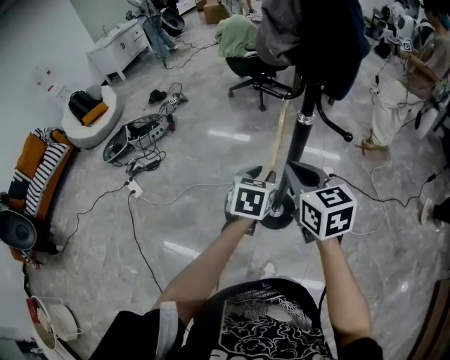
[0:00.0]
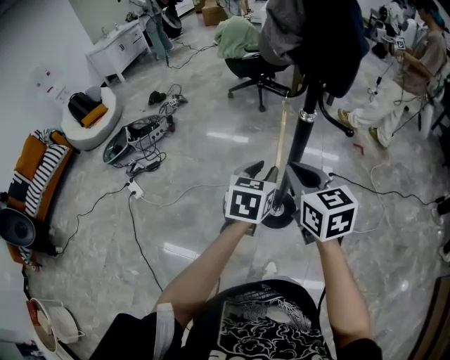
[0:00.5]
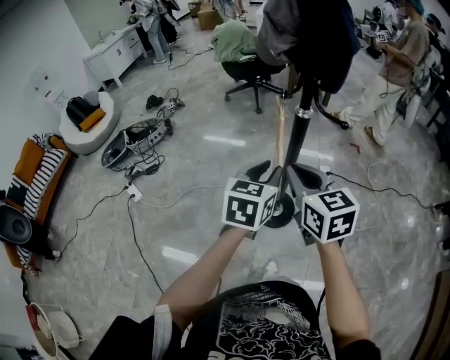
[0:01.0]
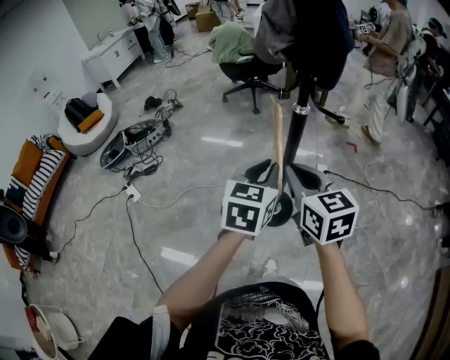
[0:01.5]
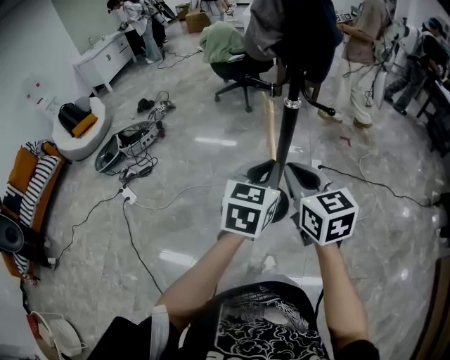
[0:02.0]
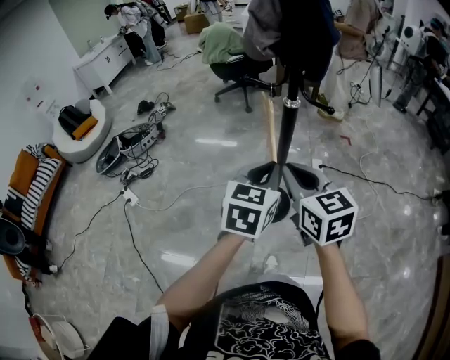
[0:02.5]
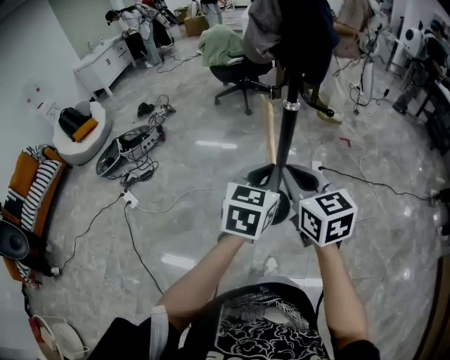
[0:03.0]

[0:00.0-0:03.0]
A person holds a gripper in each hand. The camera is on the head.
0:00.0 to 0:01.5: The left gripper moves upward and backward, some 15 cm; the right gripper goes roughly 5 cm backward.
0:01.5 to 0:03.0: The grippers stay close to where they were, moving slightly.

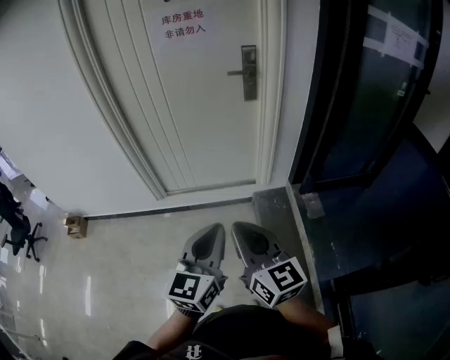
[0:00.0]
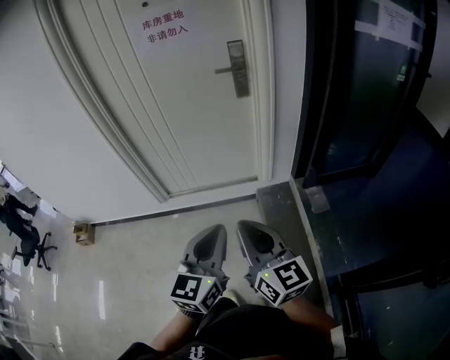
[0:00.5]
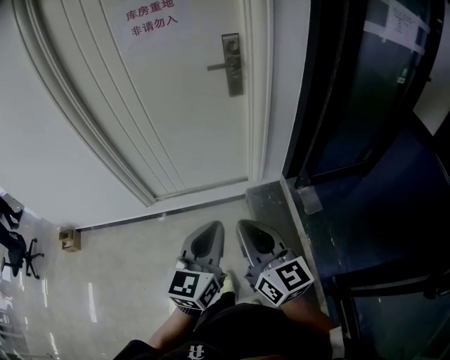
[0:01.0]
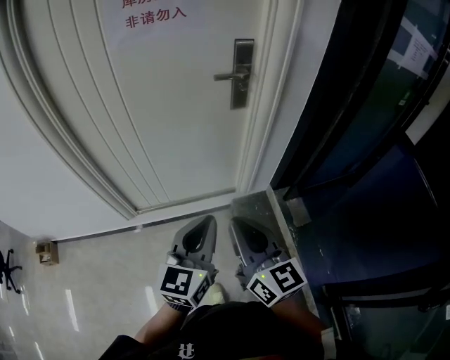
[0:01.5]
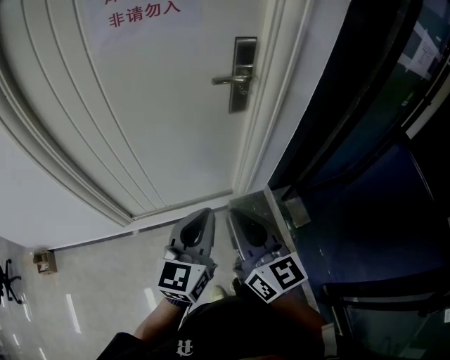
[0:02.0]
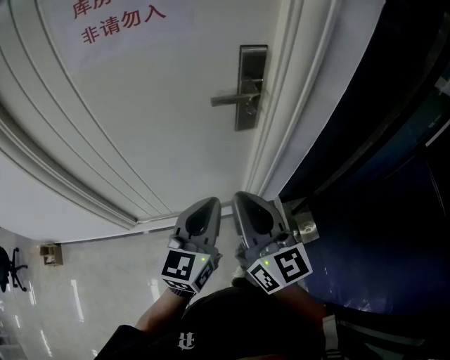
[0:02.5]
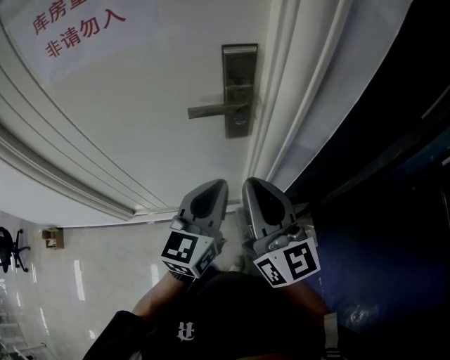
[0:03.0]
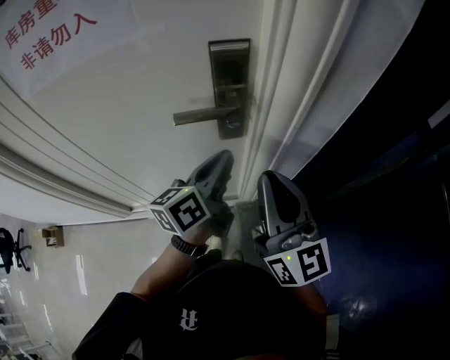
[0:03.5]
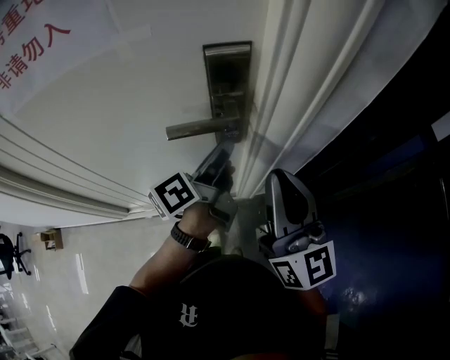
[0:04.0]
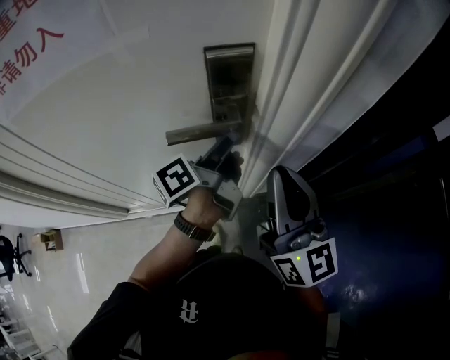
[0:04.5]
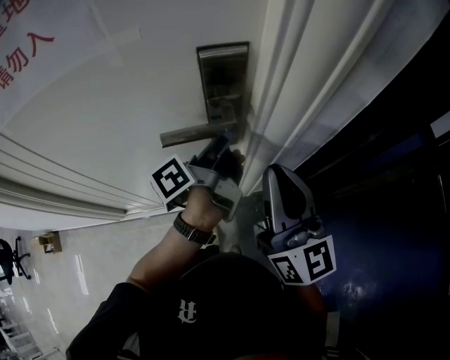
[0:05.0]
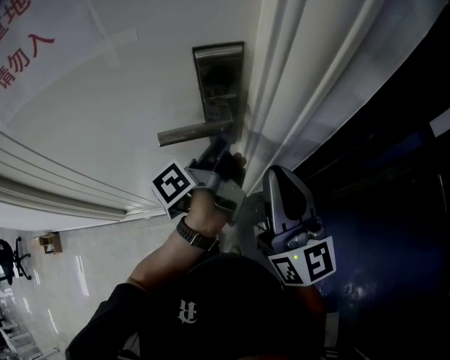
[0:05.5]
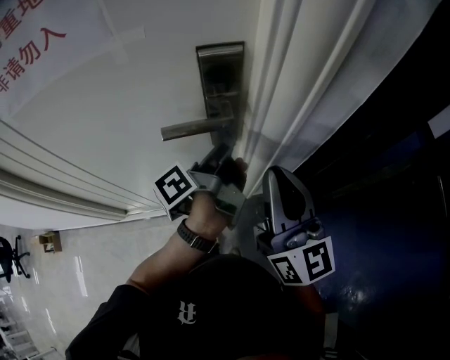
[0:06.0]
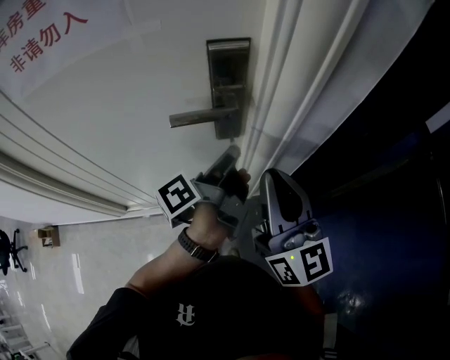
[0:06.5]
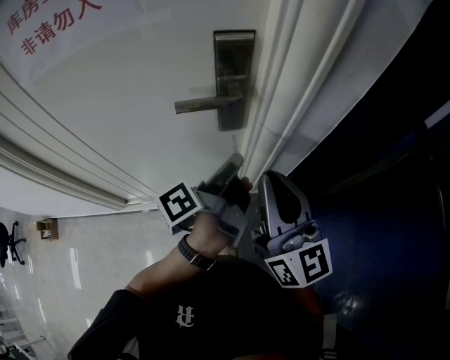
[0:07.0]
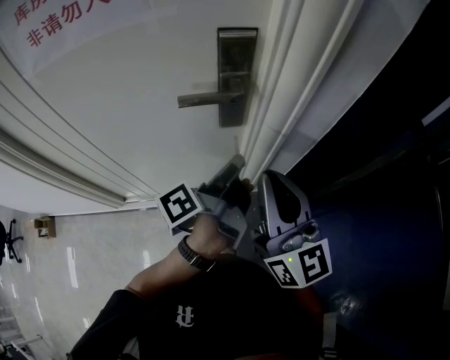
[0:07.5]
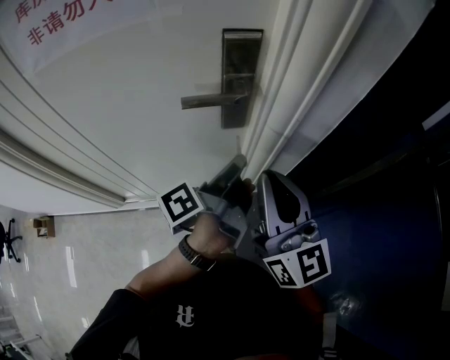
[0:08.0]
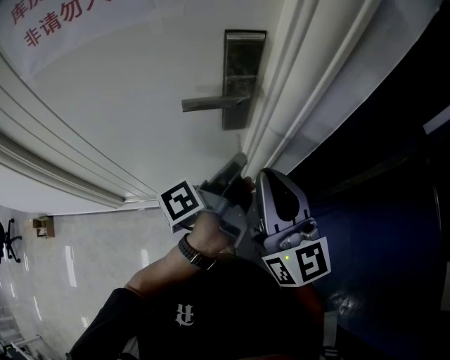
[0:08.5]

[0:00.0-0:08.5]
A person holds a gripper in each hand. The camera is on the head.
0:00.0 to 0:02.0: Both grippers travel together forward, roughly 35 cm.
0:02.0 to 0:04.0: The right gripper is displaced forward and to the right by some 35 cm. Meanwhile the left gripper heads forward, covering about 40 cm, and twists approximately 60 degrees counterclockwise, seen from behind.
0:04.0 to 0:06.5: The left gripper changes its angle by about 20 degrees.
0:06.5 to 0:08.5: The grippers stay close to where they were, moving slightly.

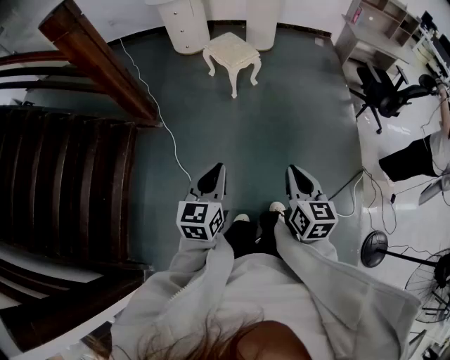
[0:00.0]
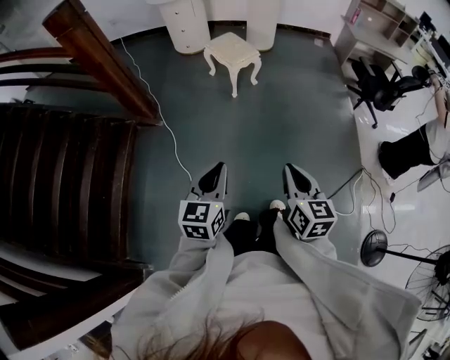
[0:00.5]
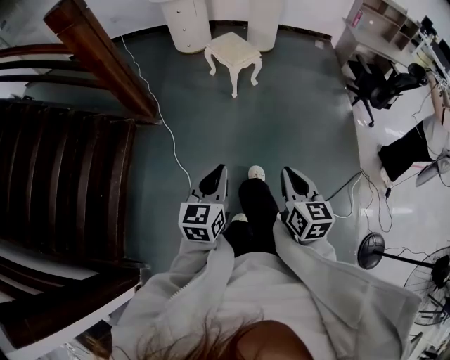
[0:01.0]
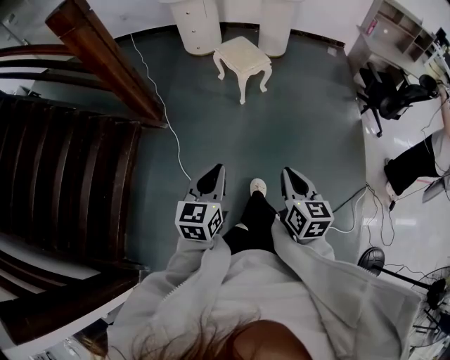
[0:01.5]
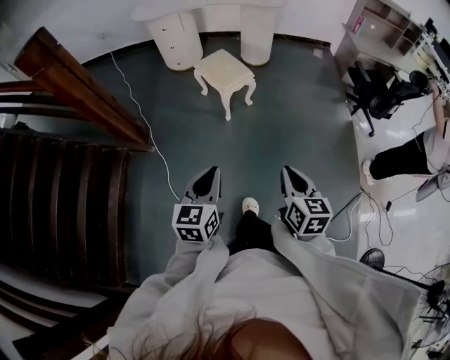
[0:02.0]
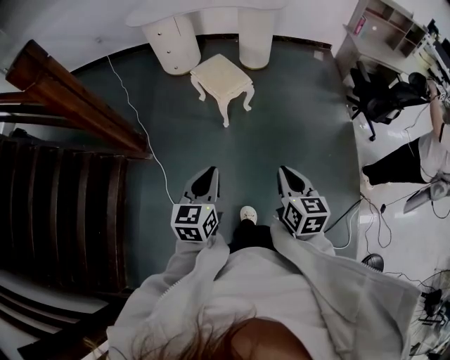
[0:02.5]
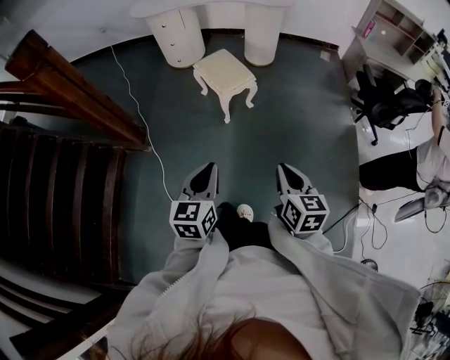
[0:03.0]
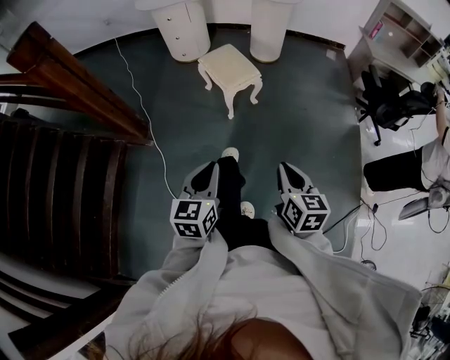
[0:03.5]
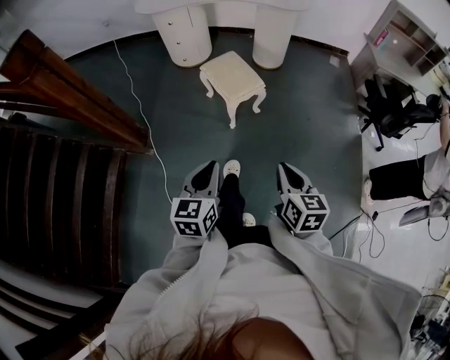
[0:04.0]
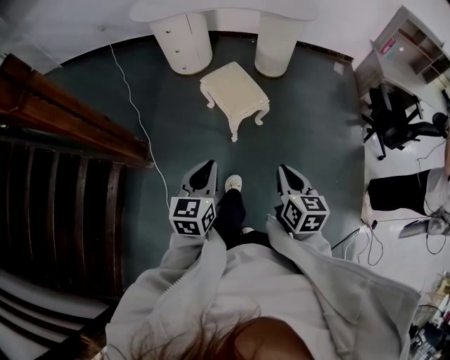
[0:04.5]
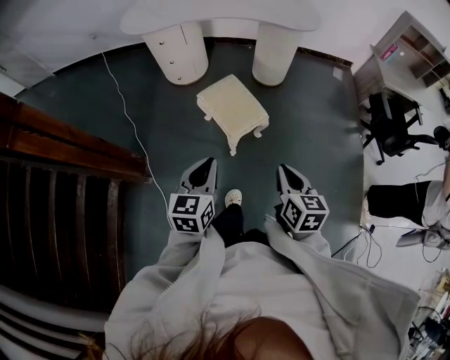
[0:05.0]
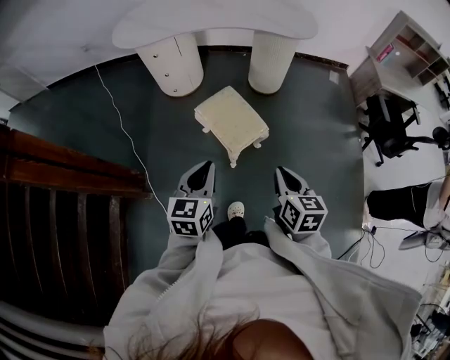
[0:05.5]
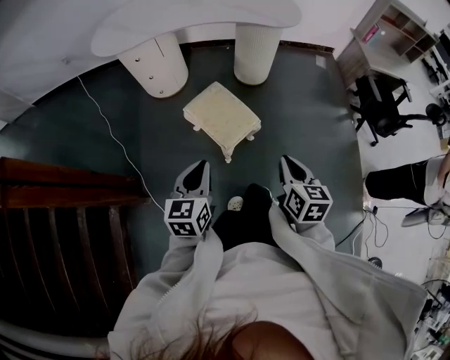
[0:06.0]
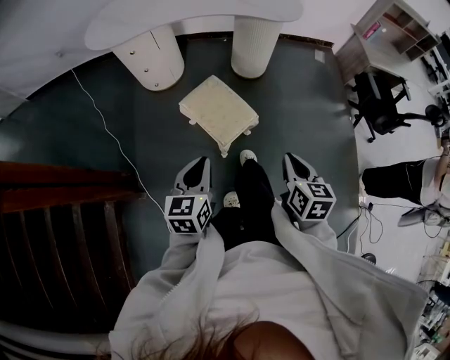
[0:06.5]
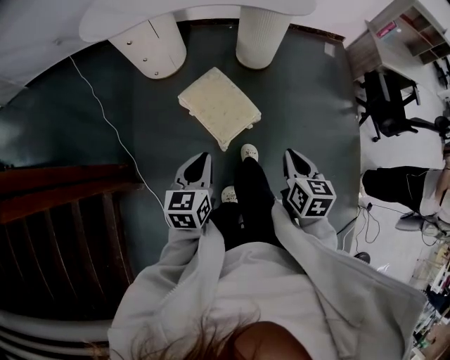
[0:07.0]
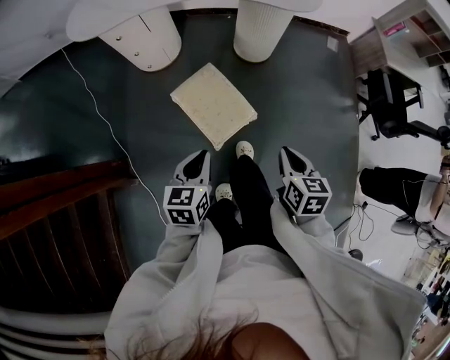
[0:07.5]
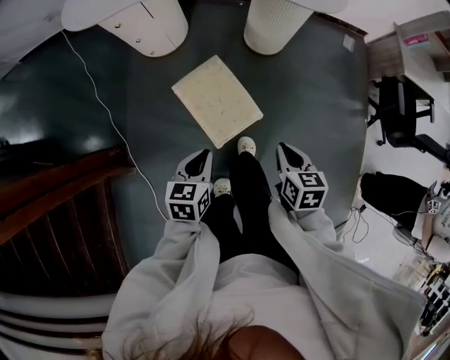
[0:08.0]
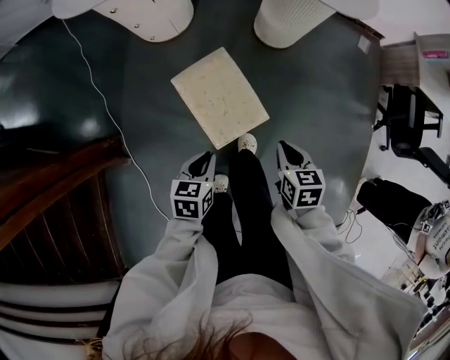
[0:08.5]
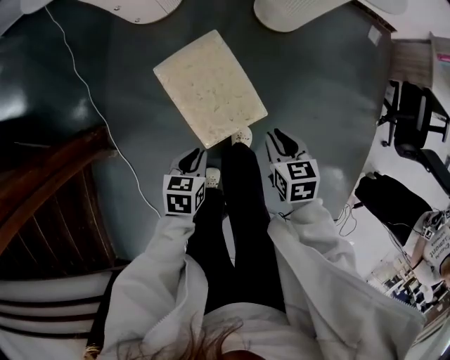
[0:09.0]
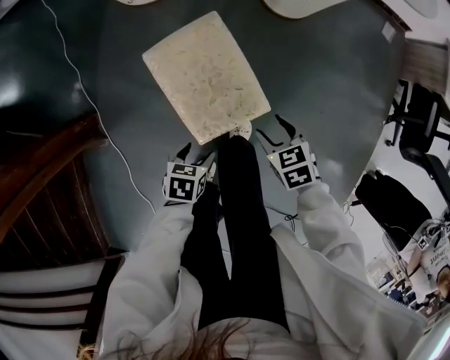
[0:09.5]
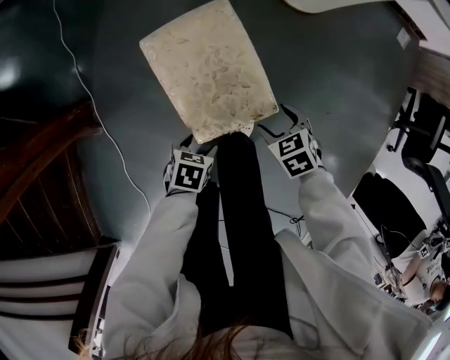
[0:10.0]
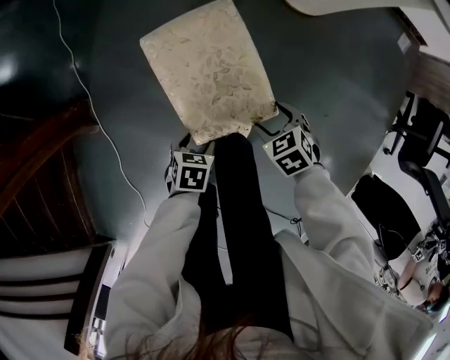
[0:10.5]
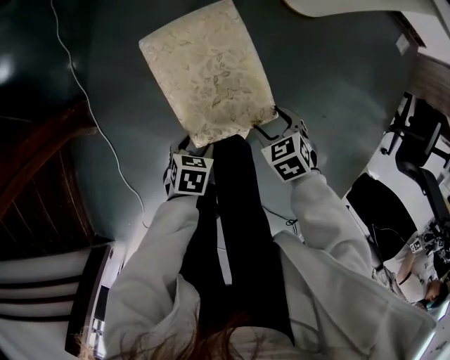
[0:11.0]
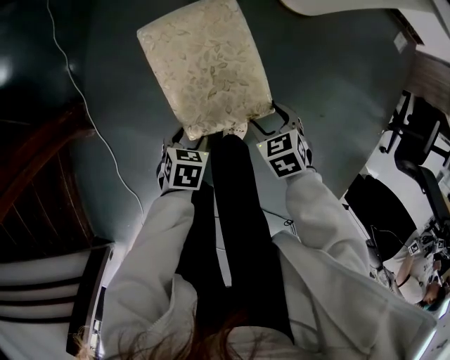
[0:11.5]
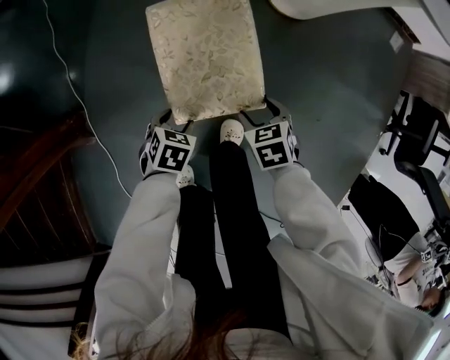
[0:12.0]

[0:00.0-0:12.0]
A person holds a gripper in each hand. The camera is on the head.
0:00.0 to 0:02.0: Both grippers travel together forward, approximately 20 cm.
0:02.0 to 0:04.0: Both grippers move forward, roughly 15 cm.
0:04.0 to 0:06.0: Both grippers travel together forward, some 30 cm.
0:06.0 to 0:08.0: Both grippers travel together forward and downward, about 20 cm. The right gripper rotates roughly 20 degrees. Meanwhile the left gripper swivels roughly 20 degrees.
0:08.0 to 0:10.0: The two grippers go about 35 cm downward. The right gripper turns by roughly 50 degrees, and opens up. The left gripper turns by approximately 40 degrees, and opens.
0:10.0 to 0:12.0: The left gripper shifts by about 10 cm, while the right gripper moves approximately 5 cm.

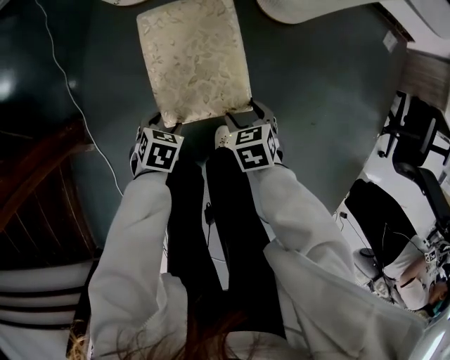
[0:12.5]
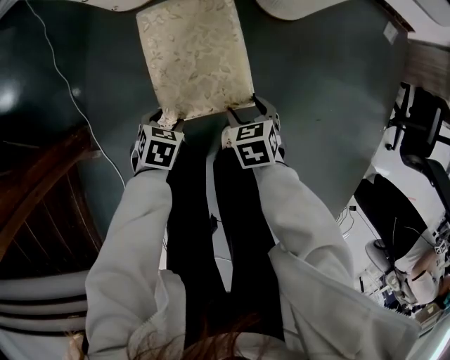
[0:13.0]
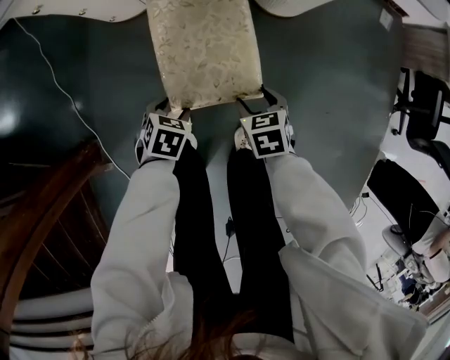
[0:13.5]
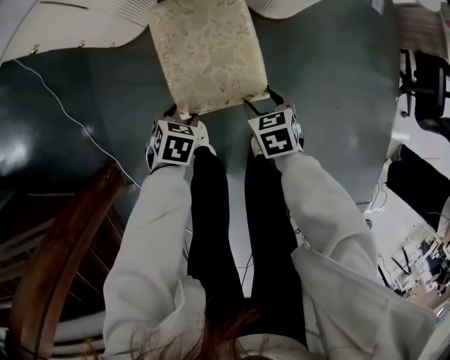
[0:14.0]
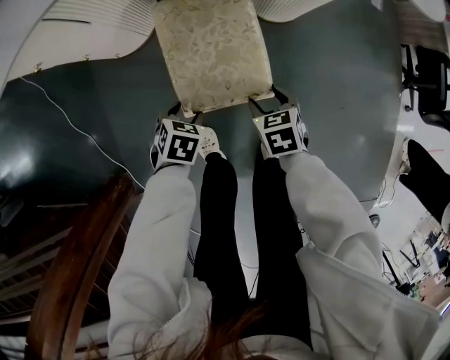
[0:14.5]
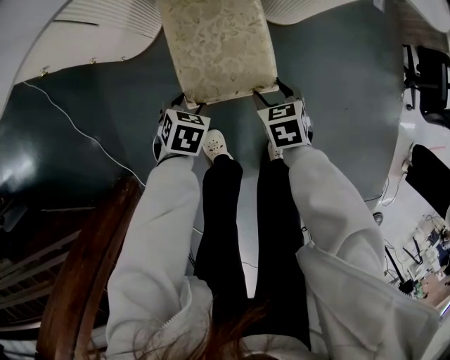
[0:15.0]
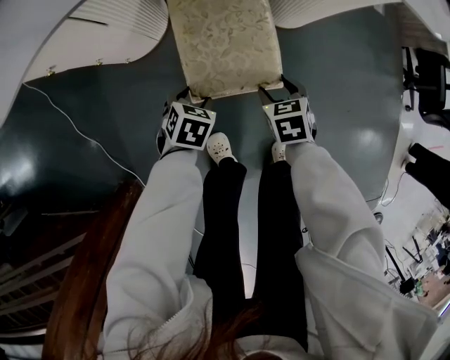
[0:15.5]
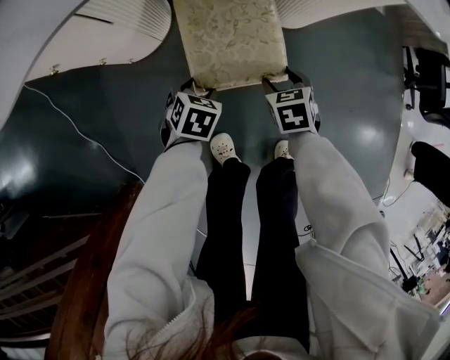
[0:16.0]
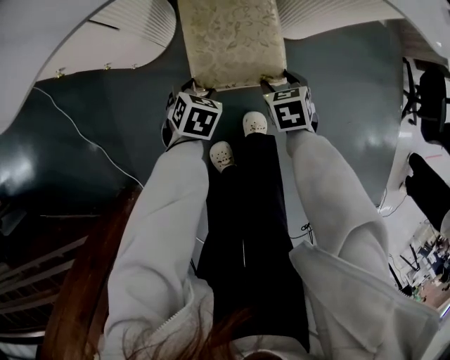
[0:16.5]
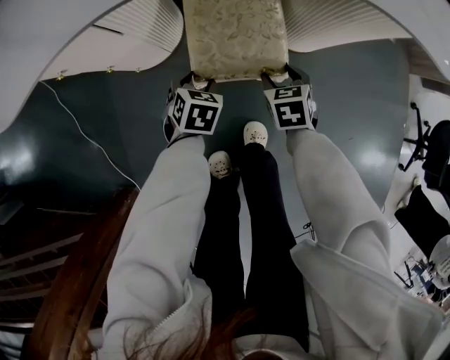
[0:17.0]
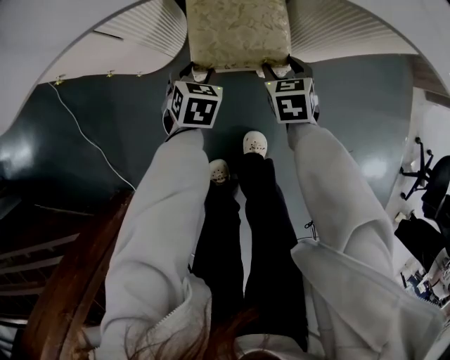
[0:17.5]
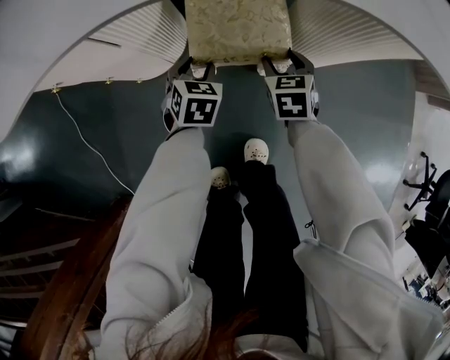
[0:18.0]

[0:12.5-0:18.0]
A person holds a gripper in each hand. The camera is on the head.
0:12.5 to 0:14.5: The left gripper shifts by approximately 20 cm; the right gripper ends up some 15 cm from where it was.
0:14.5 to 0:16.0: The left gripper travels forward and to the left by about 10 cm, while the right gripper moves forward, roughly 5 cm.
0:16.0 to 0:18.0: Both grippers travel together forward, approximately 15 cm. The left gripper swivels some 20 degrees.
